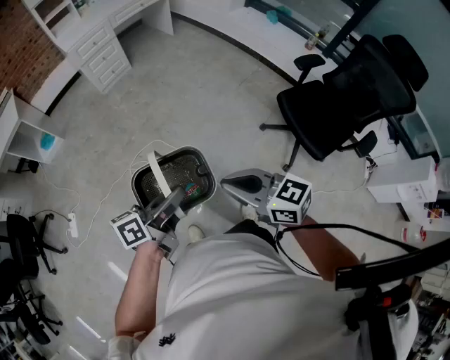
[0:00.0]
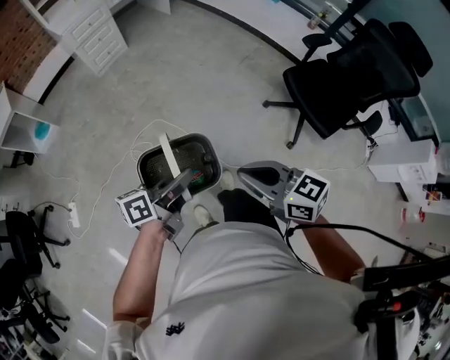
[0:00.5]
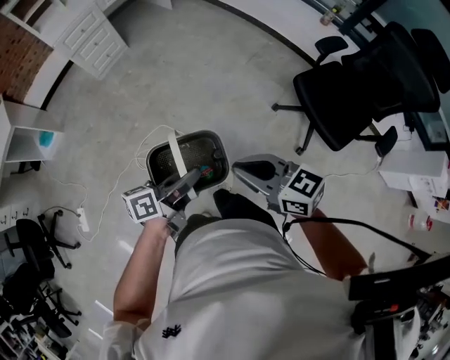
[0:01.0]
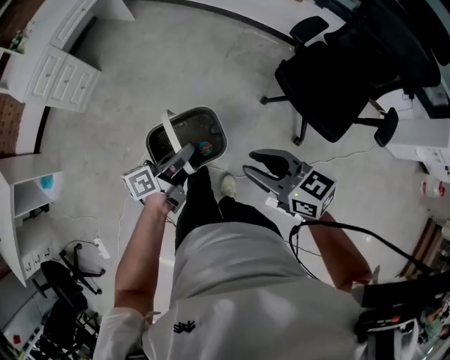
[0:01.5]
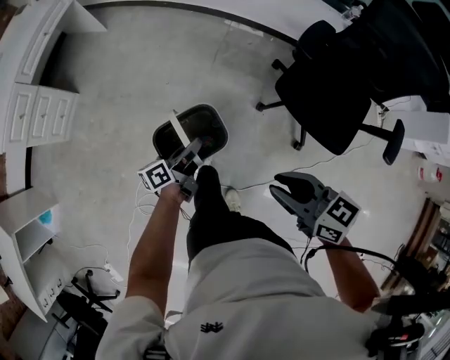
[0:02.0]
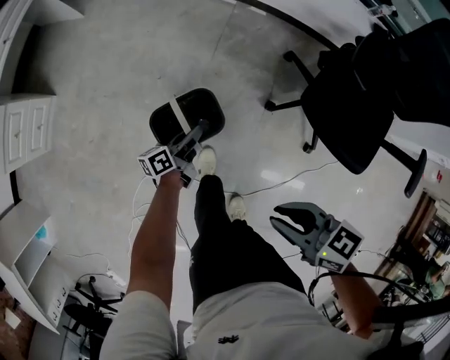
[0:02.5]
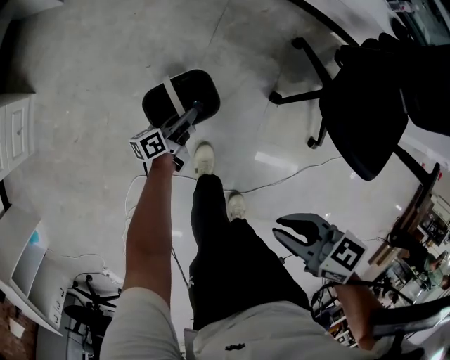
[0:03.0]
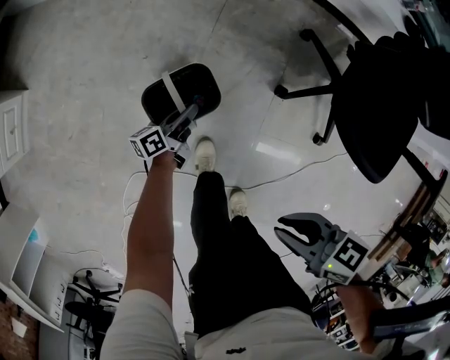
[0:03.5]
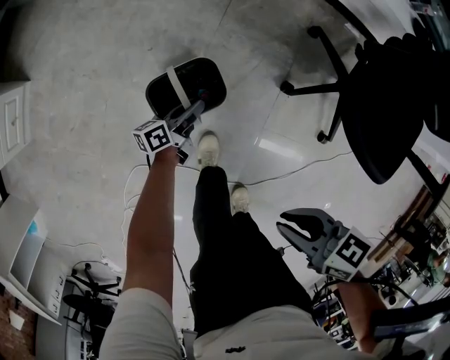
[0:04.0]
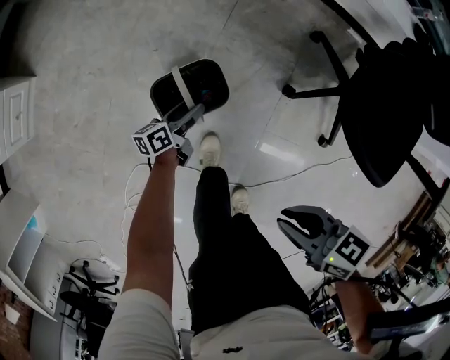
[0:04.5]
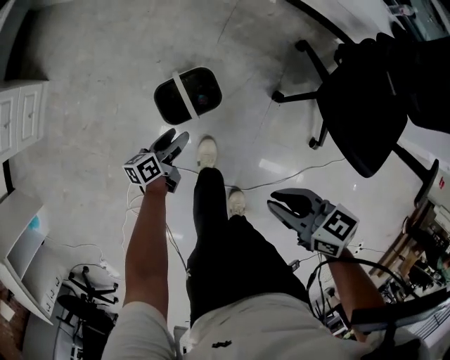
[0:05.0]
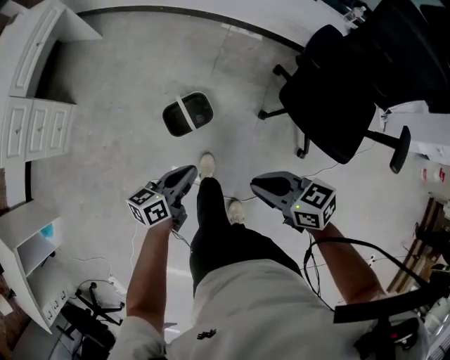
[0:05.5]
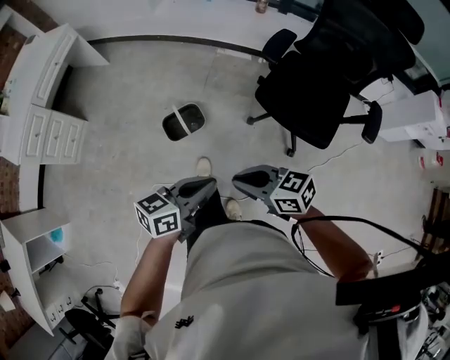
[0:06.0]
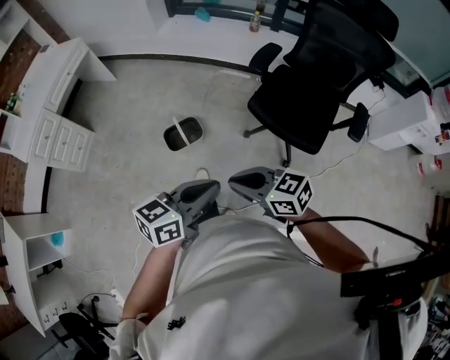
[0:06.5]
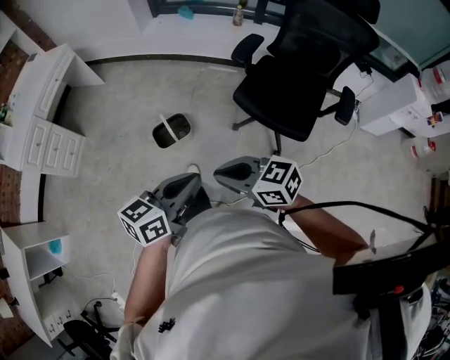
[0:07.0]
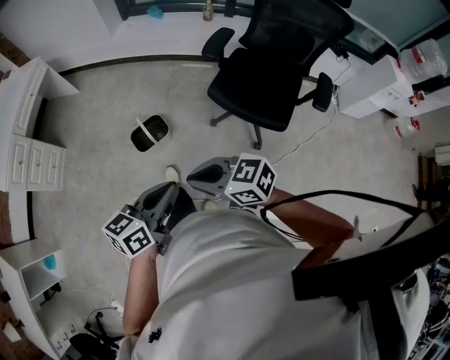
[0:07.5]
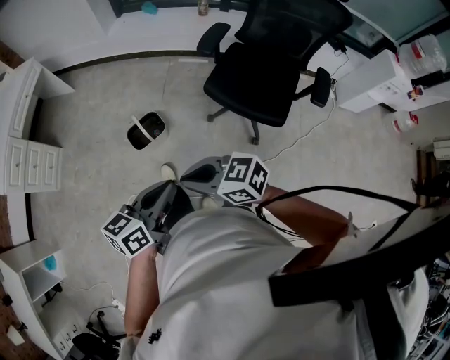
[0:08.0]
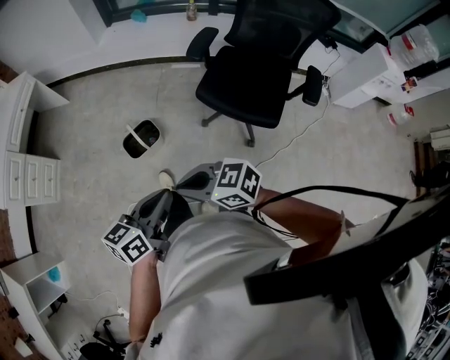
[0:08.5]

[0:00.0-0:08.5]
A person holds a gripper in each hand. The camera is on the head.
0:00.0 to 0:02.0: The right gripper is displaced forward and to the right by some 35 cm, and rotates approximately 40 degrees. Meanwhile the left gripper goes approximately 50 cm forward and downward.
0:02.0 to 0:04.0: The two grippers go approximately 35 cm downward and forward. The right gripper rotates some 20 degrees.
0:04.0 to 0:06.5: The left gripper is displaced upward by about 60 cm, twists about 40 degrees clockwise, seen from behind, and opens, then closes once more. Meanwhile the right gripper goes roughly 30 cm upward, and swivels roughly 30 degrees.
0:06.5 to 0:08.5: There are only small adjustments of the grippers.

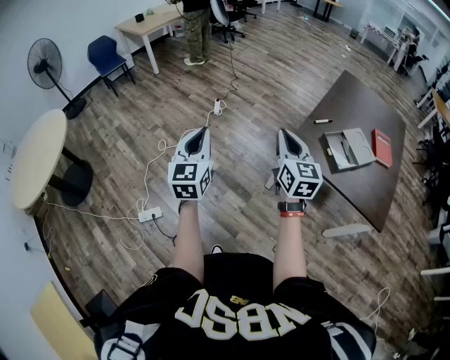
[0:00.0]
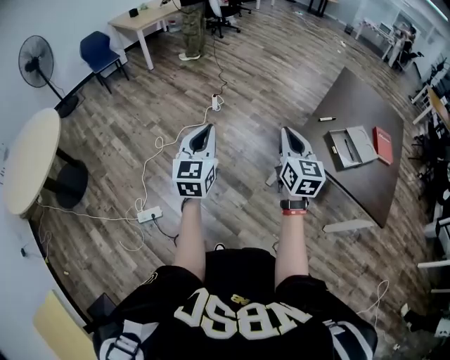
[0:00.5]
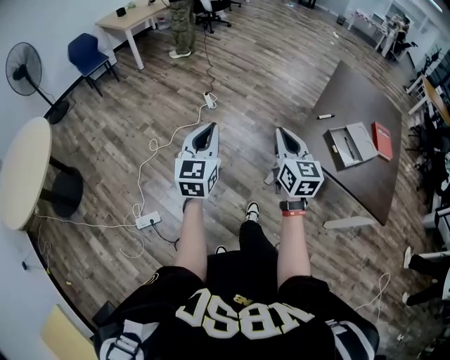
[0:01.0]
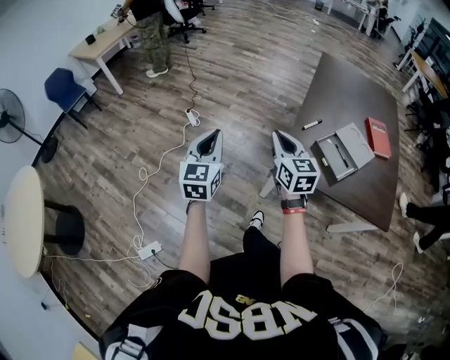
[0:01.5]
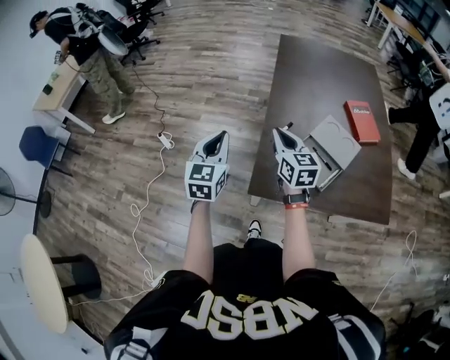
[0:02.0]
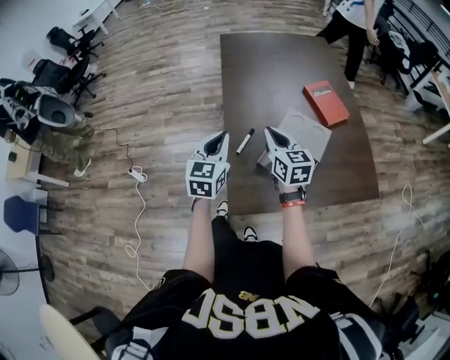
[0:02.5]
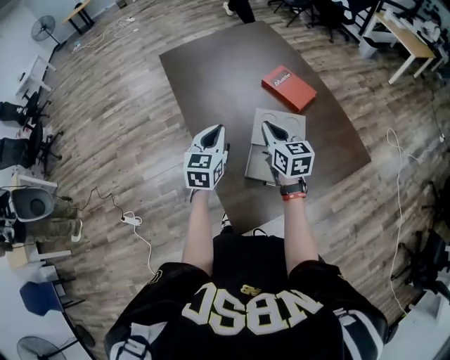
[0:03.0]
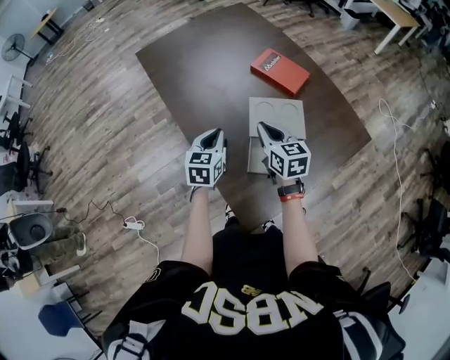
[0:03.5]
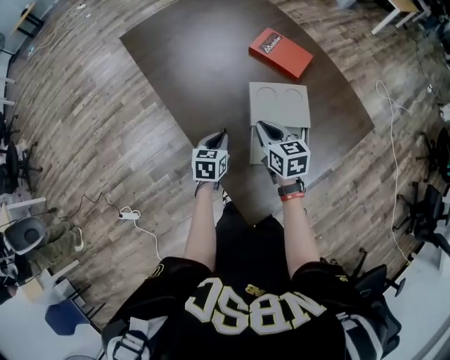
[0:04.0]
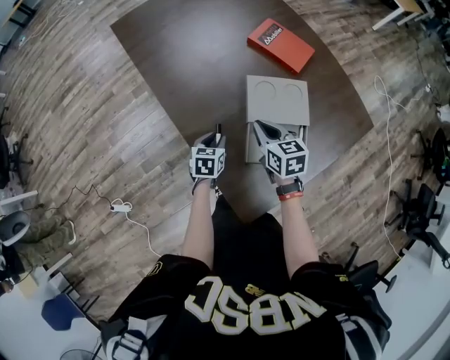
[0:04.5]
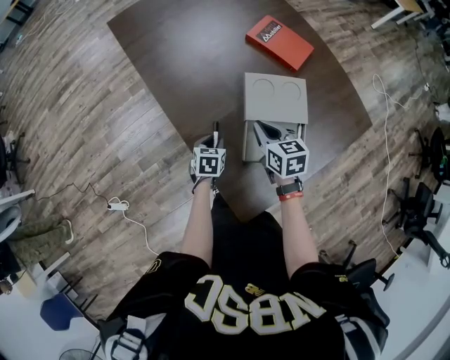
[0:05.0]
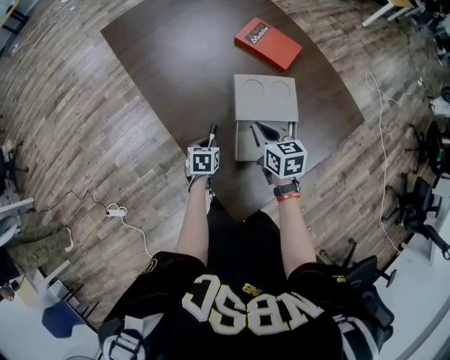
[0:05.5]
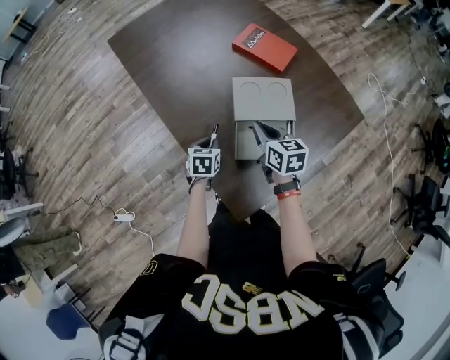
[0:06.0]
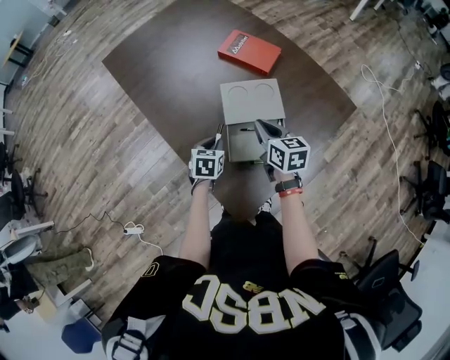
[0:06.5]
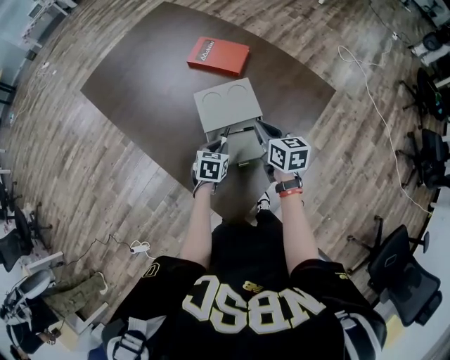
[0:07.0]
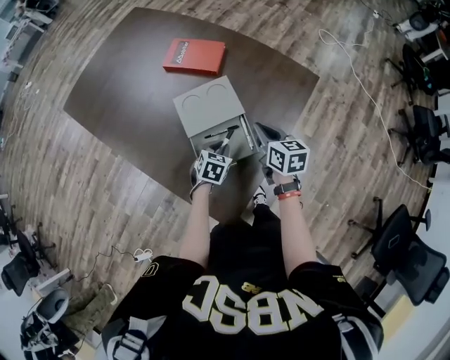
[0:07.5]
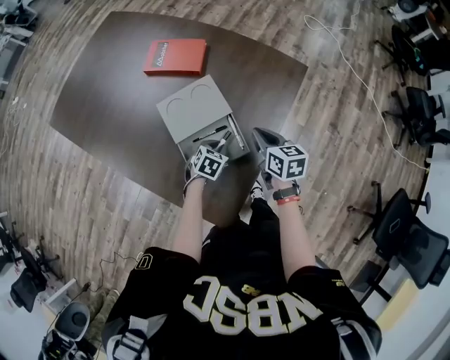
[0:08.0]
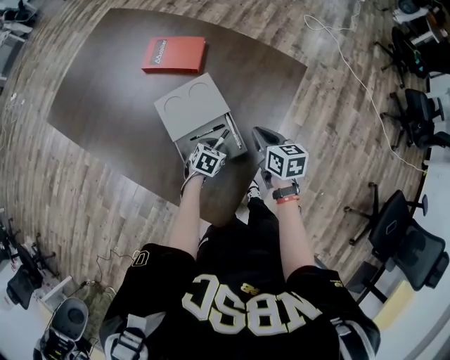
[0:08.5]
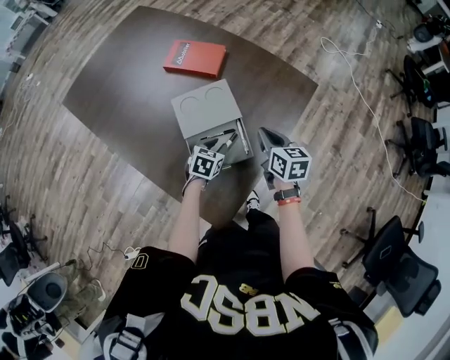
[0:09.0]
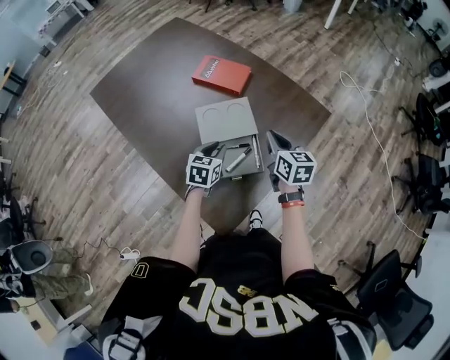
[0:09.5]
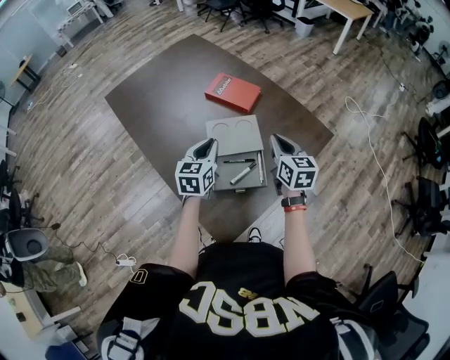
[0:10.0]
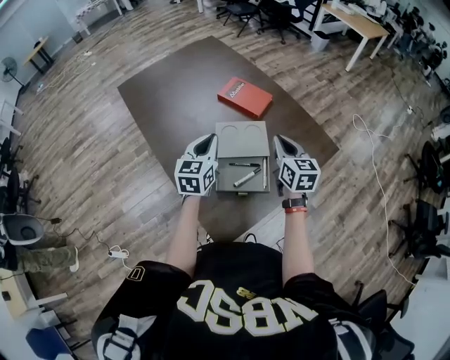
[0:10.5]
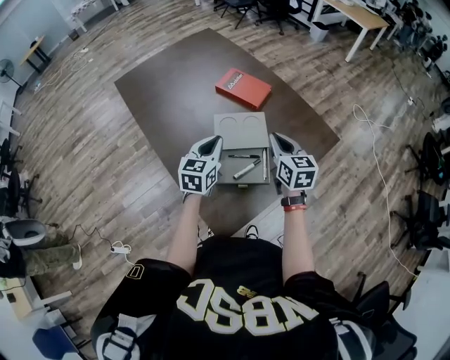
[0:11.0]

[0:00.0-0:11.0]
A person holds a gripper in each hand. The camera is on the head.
0:00.0 to 0:02.0: The two grippers travel together, forward and to the right, about 40 cm. The left gripper rotates about 30 degrees. Meanwhile the right gripper changes its angle by roughly 20 degrees.
0:02.0 to 0:03.5: The left gripper changes place by some 35 cm, and turns by about 50 degrees, while the right gripper moves roughly 25 cm, and swivels approximately 40 degrees.
0:03.5 to 0:05.5: The right gripper travels downward by approximately 10 cm, while the left gripper is displaced downward by approximately 20 cm, and turns by approximately 30 degrees.
0:05.5 to 0:07.5: The grippers both shift to the right by some 20 cm. The right gripper changes its angle by roughly 30 degrees. Meanwhile the left gripper swivels about 40 degrees.
0:09.0 to 0:11.0: The left gripper travels upward and to the left by some 25 cm, tilts its fingers approximately 30 degrees upward, and closes its fingers. Meanwhile the right gripper shifts some 15 cm upward and to the left, and turns by roughly 20 degrees.

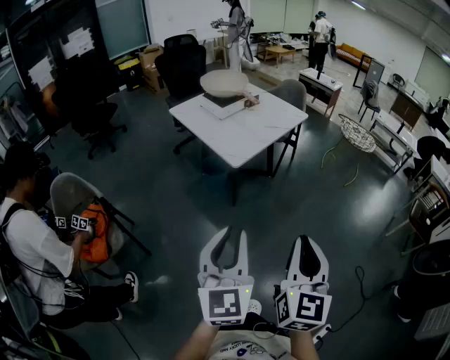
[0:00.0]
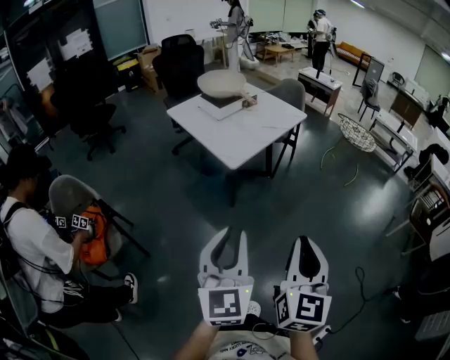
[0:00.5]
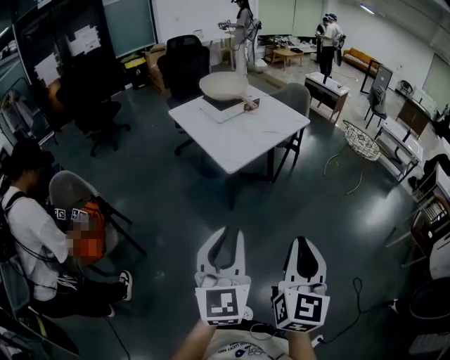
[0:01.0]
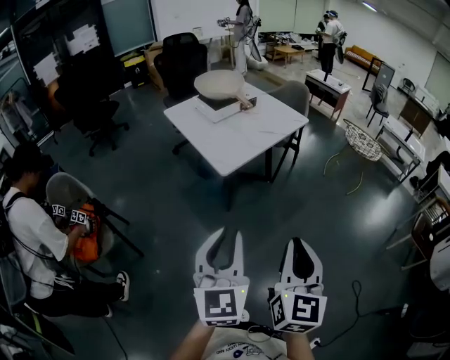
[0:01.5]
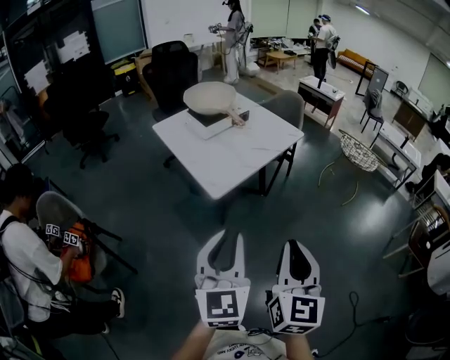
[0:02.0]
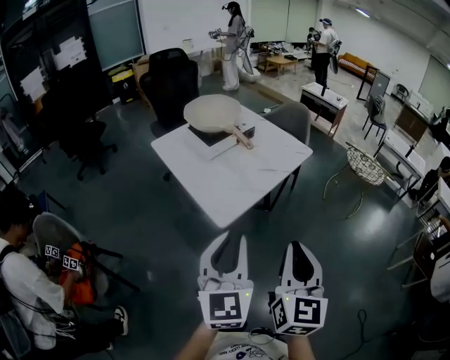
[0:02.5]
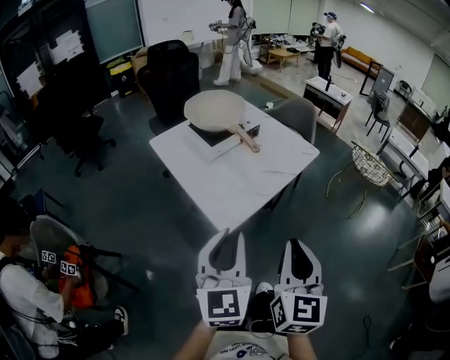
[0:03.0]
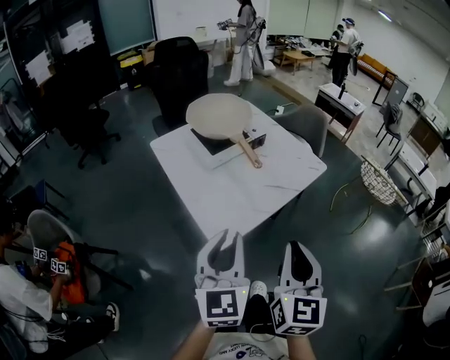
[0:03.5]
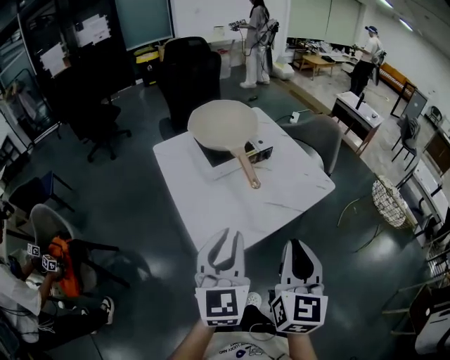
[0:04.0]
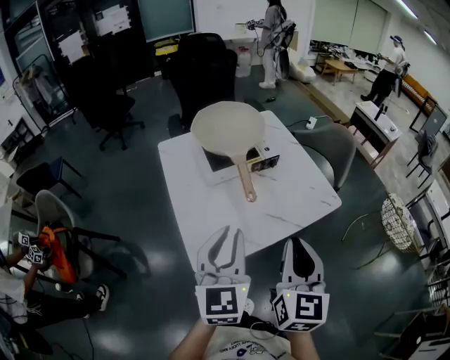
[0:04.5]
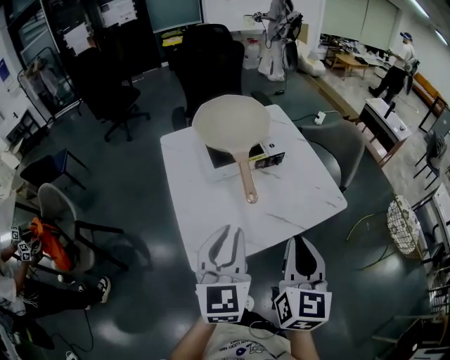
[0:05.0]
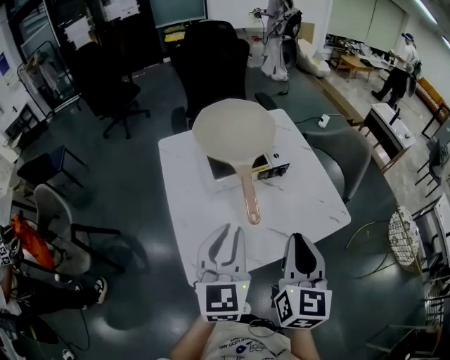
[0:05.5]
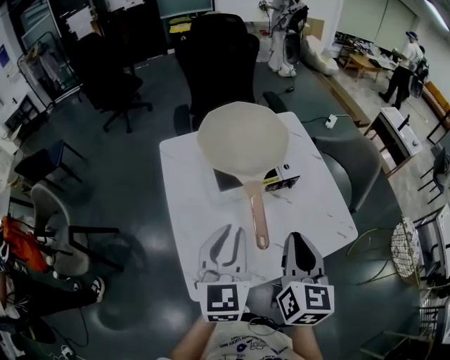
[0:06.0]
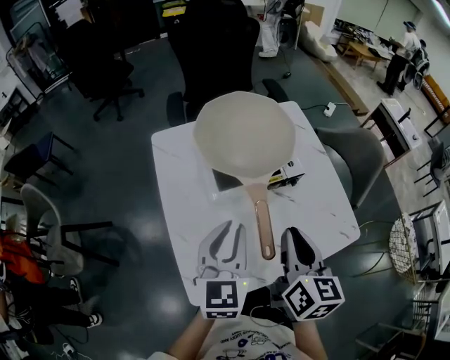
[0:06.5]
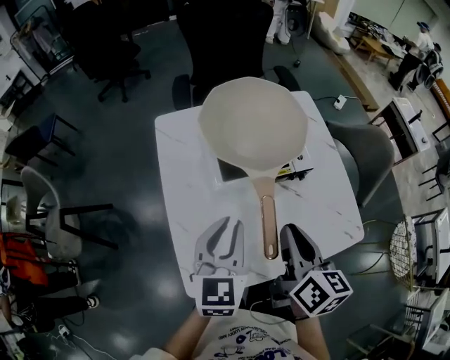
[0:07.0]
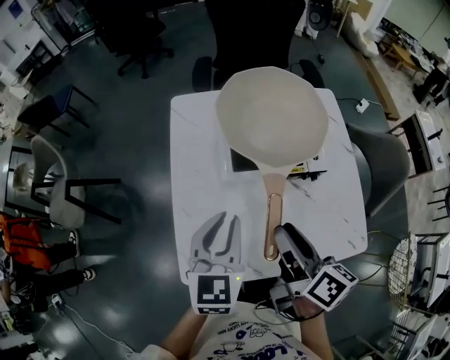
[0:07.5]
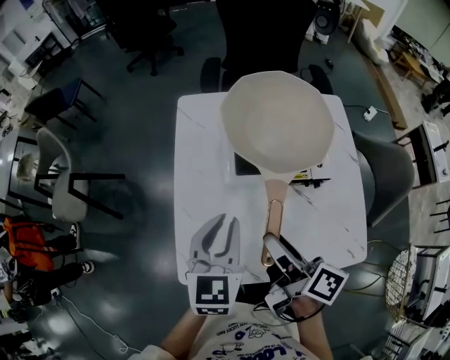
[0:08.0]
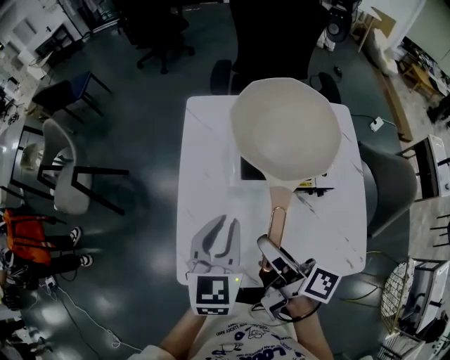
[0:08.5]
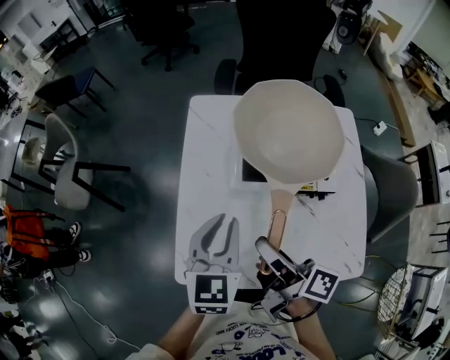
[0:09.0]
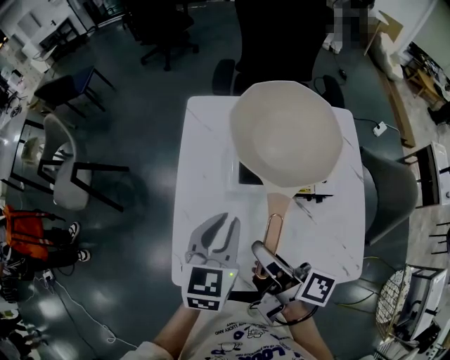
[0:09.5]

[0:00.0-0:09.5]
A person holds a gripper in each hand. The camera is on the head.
0:00.0 to 0:02.0: The left gripper goes some 20 cm forward and to the right. Meanwhile the right gripper moves forward, some 15 cm.
0:02.0 to 0:04.0: Both grippers move forward, about 35 cm.
0:04.0 to 0:05.5: Both grippers move forward, some 15 cm.
0:05.5 to 0:07.5: The left gripper goes roughly 15 cm forward and downward. The right gripper moves forward, downward and to the left, roughly 15 cm, rotates approximately 60 degrees, and opens up.
0:07.5 to 0:09.5: The right gripper ends up some 5 cm from where it was, and turns by some 30 degrees.
